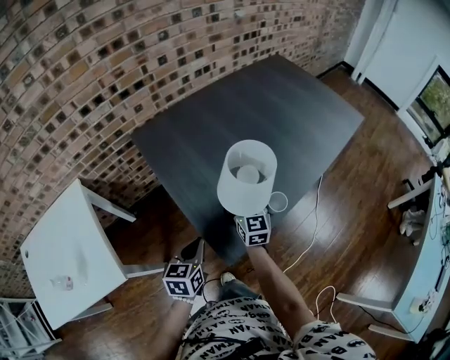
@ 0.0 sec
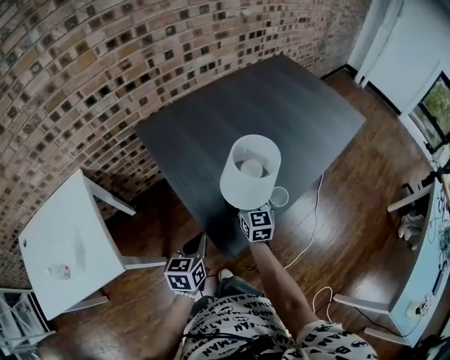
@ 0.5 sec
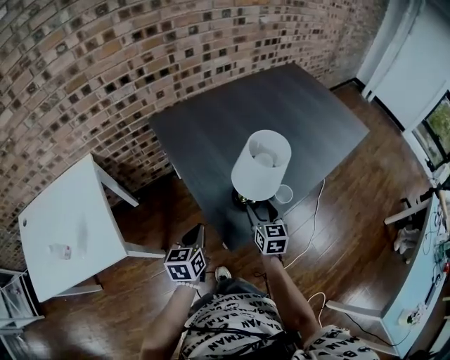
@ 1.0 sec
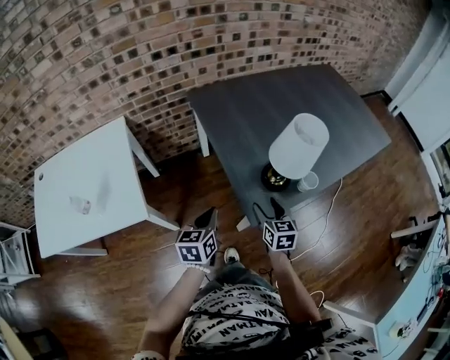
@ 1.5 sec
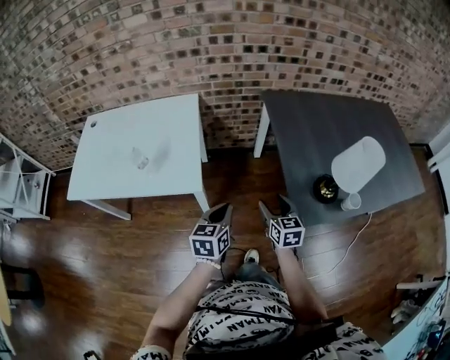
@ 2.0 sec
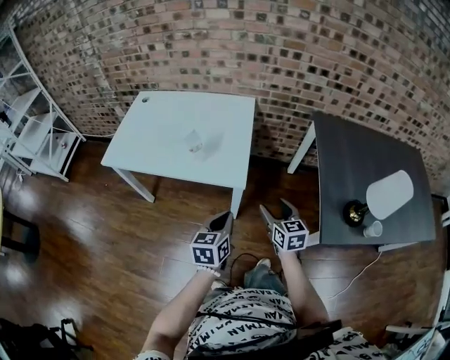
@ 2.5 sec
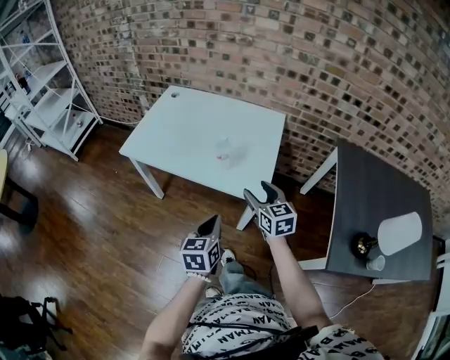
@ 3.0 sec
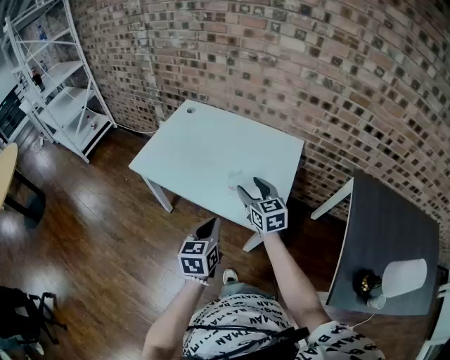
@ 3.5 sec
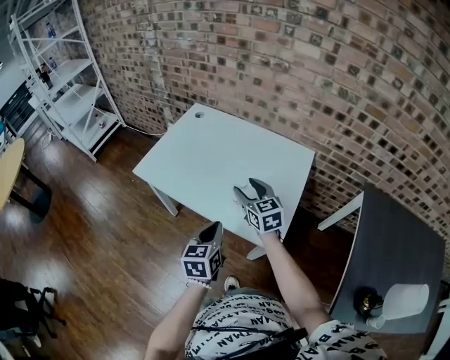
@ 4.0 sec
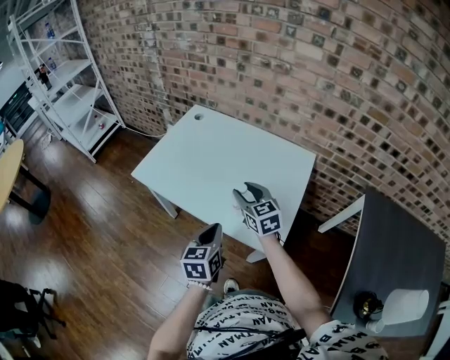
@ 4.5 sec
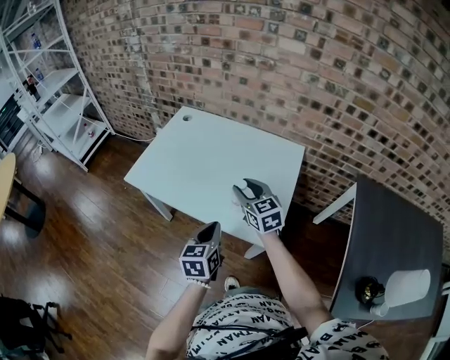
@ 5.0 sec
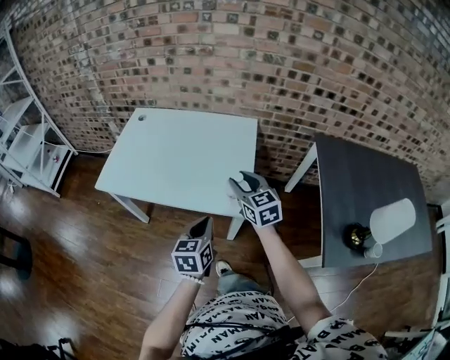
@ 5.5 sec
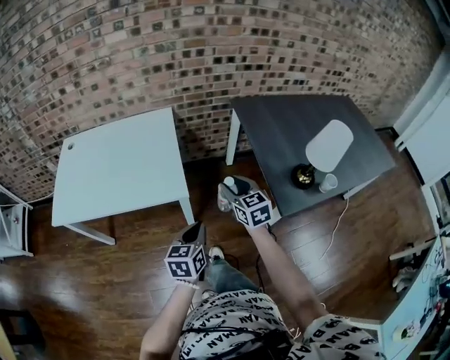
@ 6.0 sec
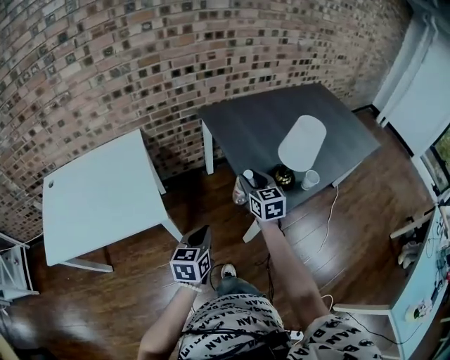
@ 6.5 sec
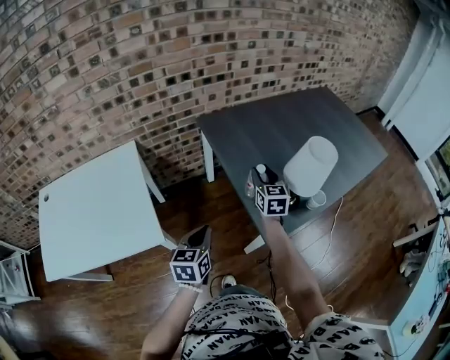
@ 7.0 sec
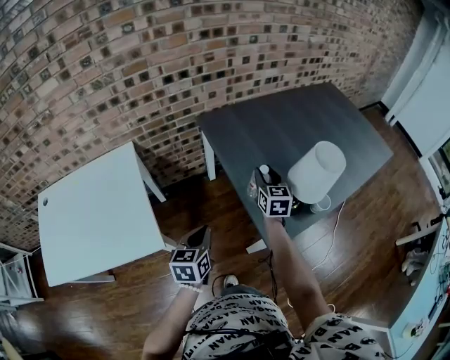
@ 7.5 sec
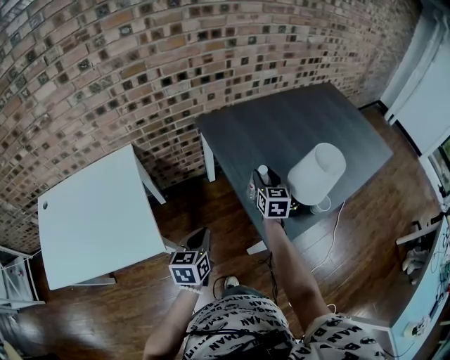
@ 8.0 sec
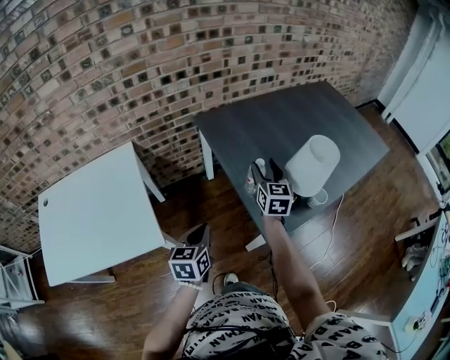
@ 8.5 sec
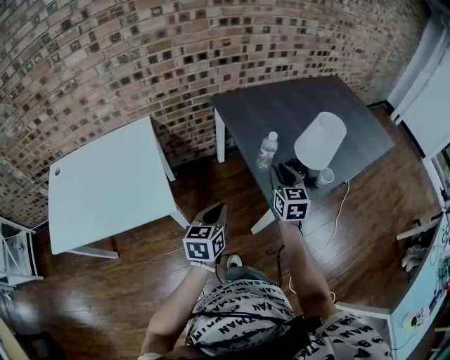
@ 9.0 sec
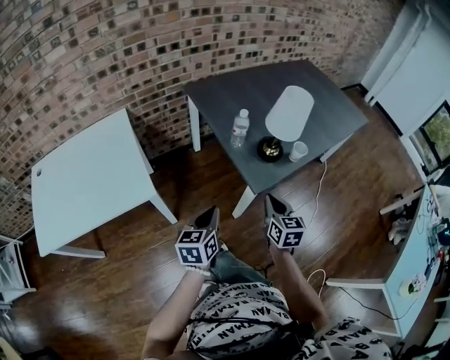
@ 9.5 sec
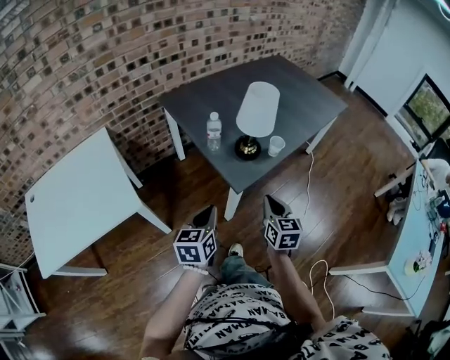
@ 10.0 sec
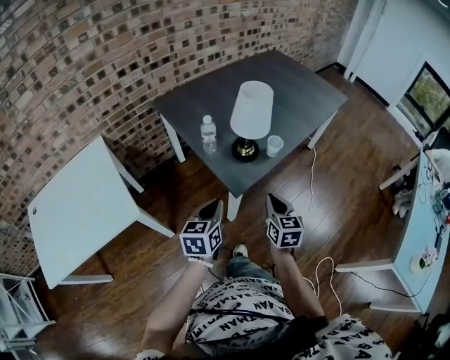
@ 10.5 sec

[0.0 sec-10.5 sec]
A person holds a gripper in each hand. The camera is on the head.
0.0 sec to 2.0 sec: The left gripper shifts by some 25 cm, and changes its angle by some 30 degrees, while the right gripper shifts by approximately 30 cm, turns by about 40 degrees, and opens.
2.0 sec to 4.0 sec: The right gripper moves some 50 cm, and changes its angle by some 50 degrees. The left gripper ends up approximately 35 cm from where it was, and changes its angle by roughly 40 degrees.
4.0 sec to 6.5 sec: The left gripper changes place by some 40 cm, and rotates roughly 50 degrees. The right gripper changes place by some 60 cm, and rotates approximately 60 degrees.
6.5 sec to 8.5 sec: The right gripper travels forward and to the right by some 15 cm. The left gripper is displaced forward by roughly 10 cm.
8.5 sec to 10.5 sec: The right gripper moves backward and to the right, roughly 35 cm, and closes up. The left gripper moves to the right and backward, about 20 cm.

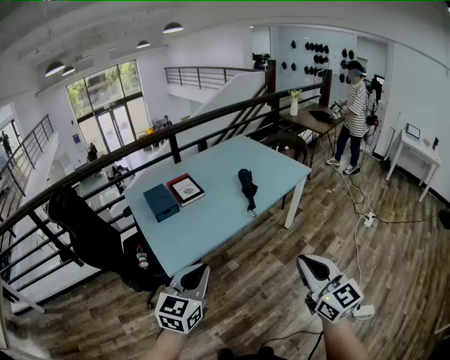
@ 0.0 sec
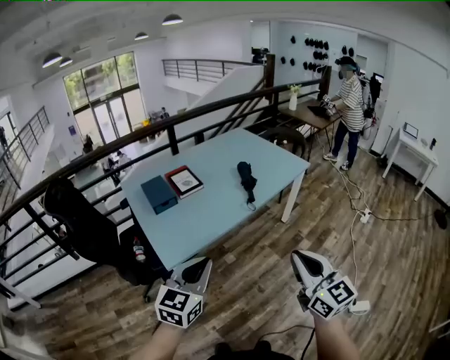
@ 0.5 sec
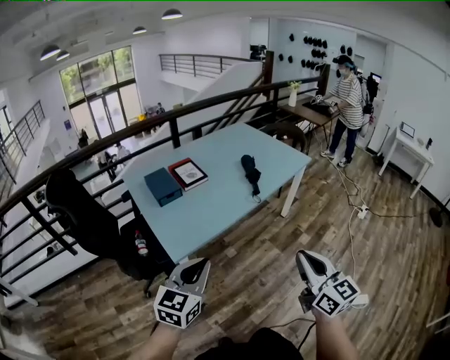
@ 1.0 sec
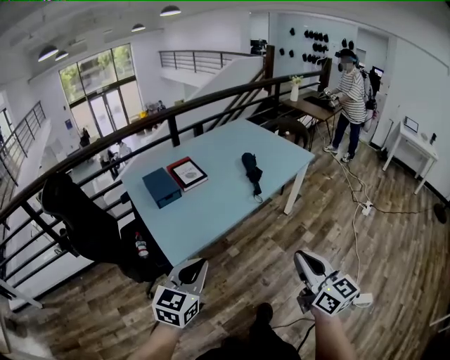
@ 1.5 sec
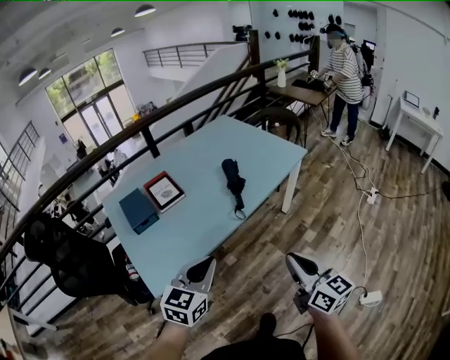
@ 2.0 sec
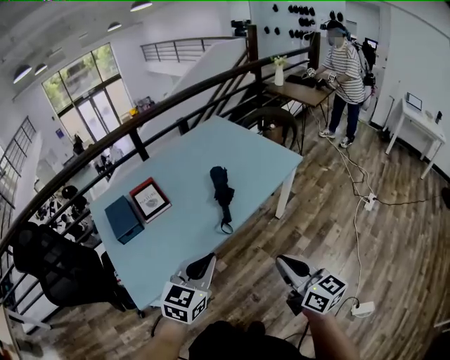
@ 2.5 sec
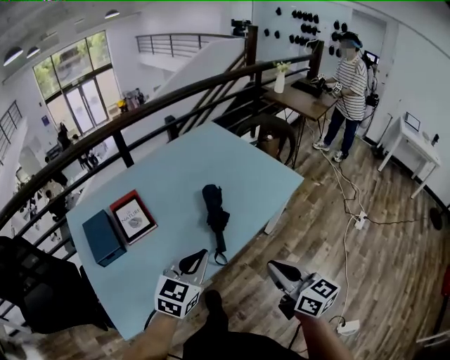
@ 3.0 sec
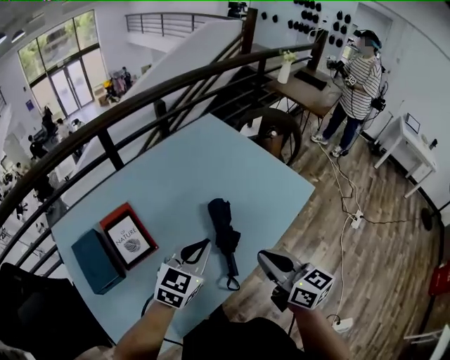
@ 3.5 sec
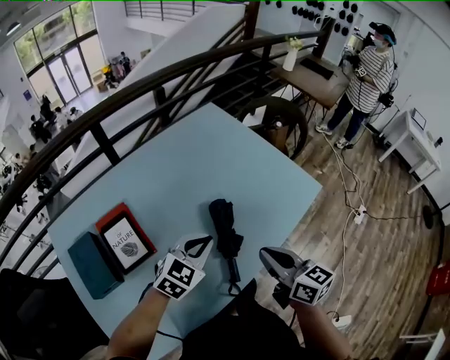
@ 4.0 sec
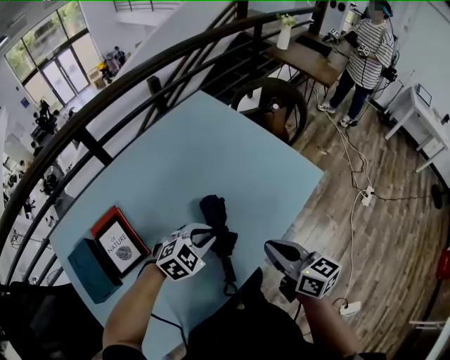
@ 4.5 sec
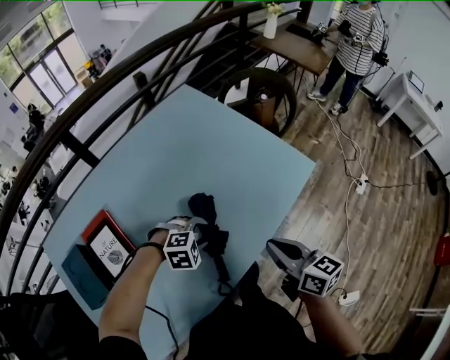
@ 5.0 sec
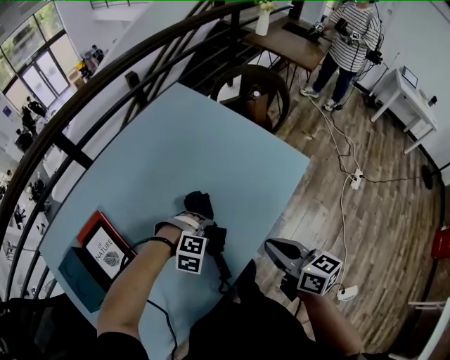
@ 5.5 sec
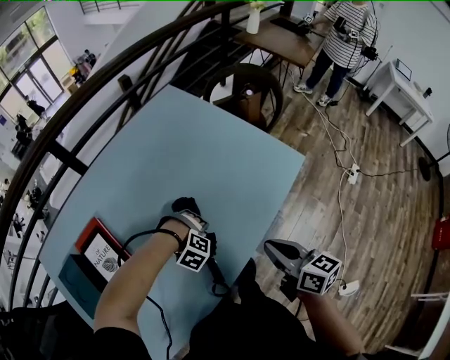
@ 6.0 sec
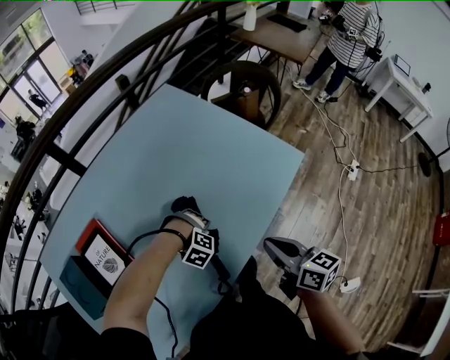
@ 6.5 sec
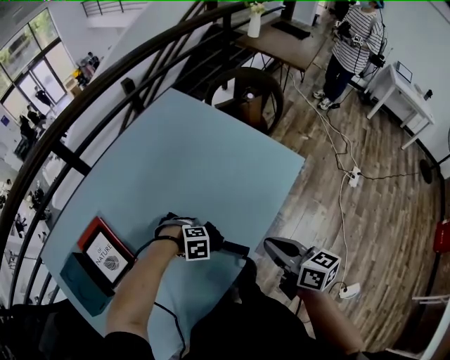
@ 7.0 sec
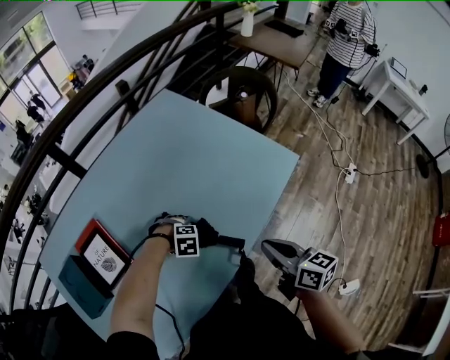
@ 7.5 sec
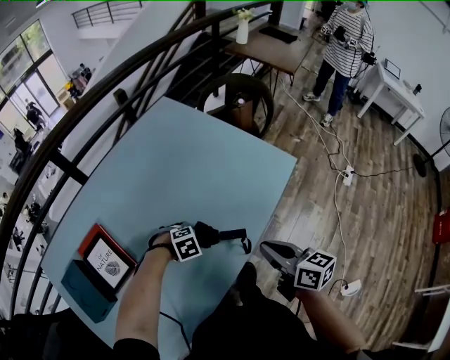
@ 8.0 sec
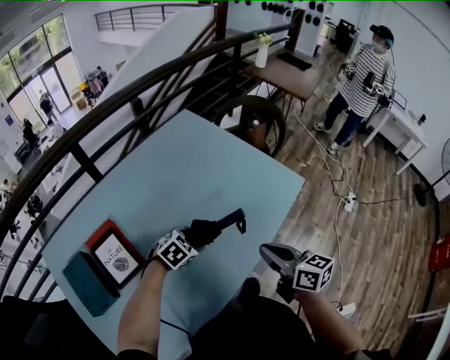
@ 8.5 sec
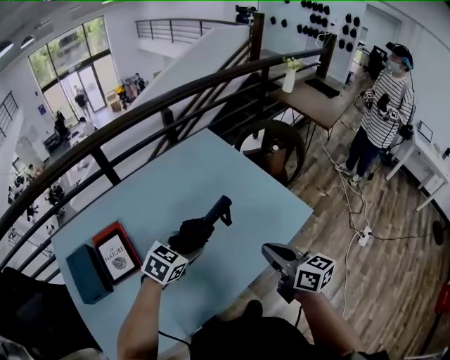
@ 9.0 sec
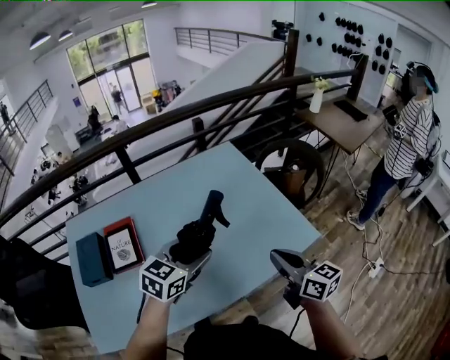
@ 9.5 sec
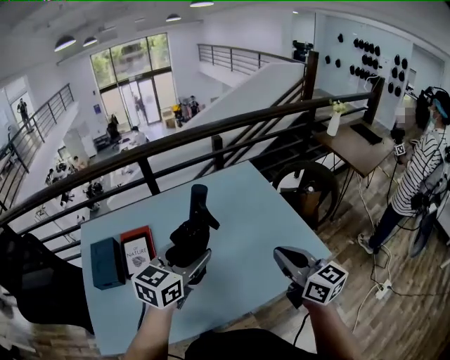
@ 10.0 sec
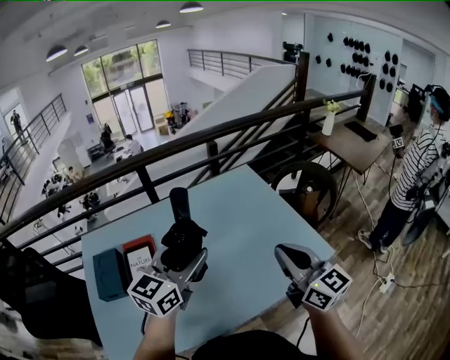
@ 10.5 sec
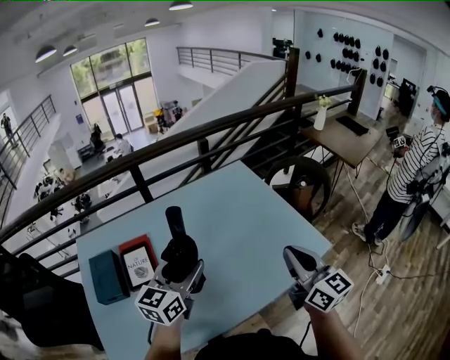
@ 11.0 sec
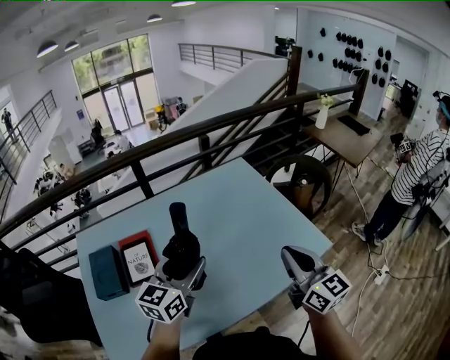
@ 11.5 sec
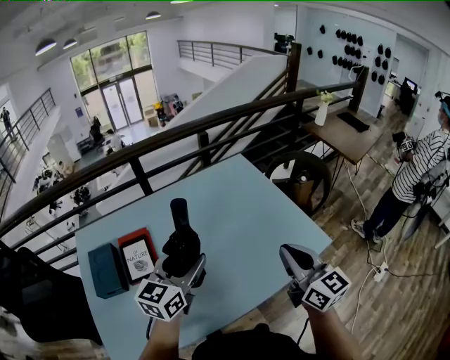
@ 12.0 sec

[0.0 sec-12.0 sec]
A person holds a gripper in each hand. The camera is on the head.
0.0 sec to 2.0 sec: The left gripper is displaced forward and to the right by about 20 cm. Meanwhile the right gripper travels forward and downward by some 20 cm, and changes its angle by some 20 degrees.
2.0 sec to 4.0 sec: The pair of grippers is taken forward, about 50 cm. The left gripper swivels about 20 degrees.
4.0 sec to 6.0 sec: The left gripper moves downward, approximately 20 cm, points its fingers about 60 degrees further downward, and opens. The right gripper shifts by roughly 10 cm.
6.0 sec to 8.0 sec: The left gripper rolls counterclockwise, seen from behind, by about 50 degrees.
8.0 sec to 10.0 sec: The left gripper moves upward, about 40 cm, and angles its fingers upward, by about 60 degrees; the right gripper is displaced upward by some 15 cm, and turns by about 40 degrees.
10.0 sec to 12.0 sec: The left gripper heads to the left, covering roughly 5 cm.

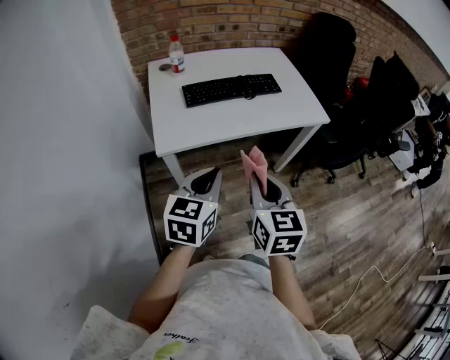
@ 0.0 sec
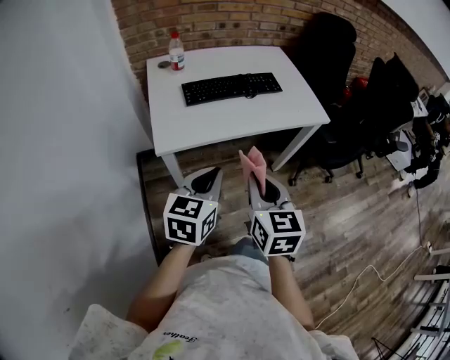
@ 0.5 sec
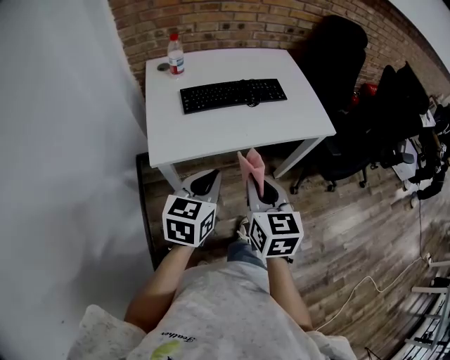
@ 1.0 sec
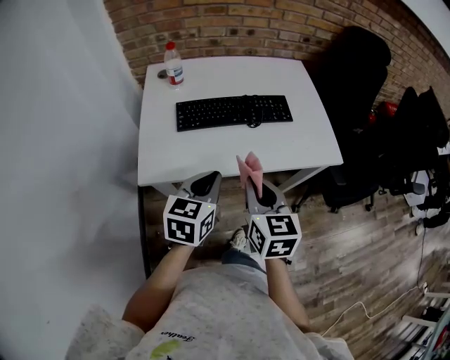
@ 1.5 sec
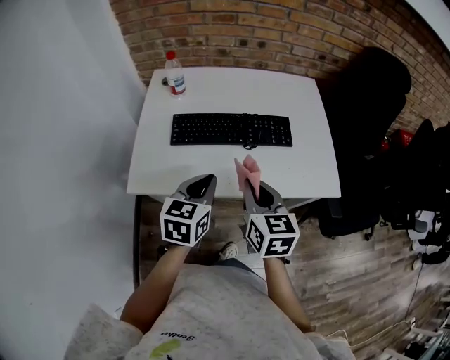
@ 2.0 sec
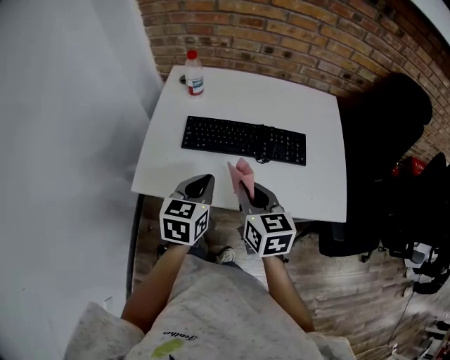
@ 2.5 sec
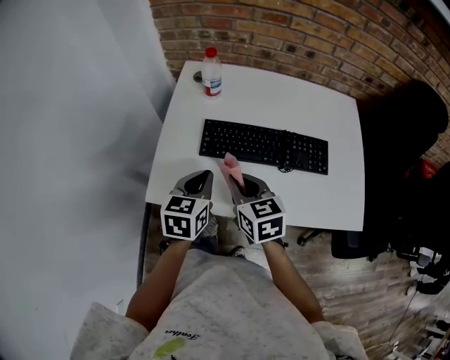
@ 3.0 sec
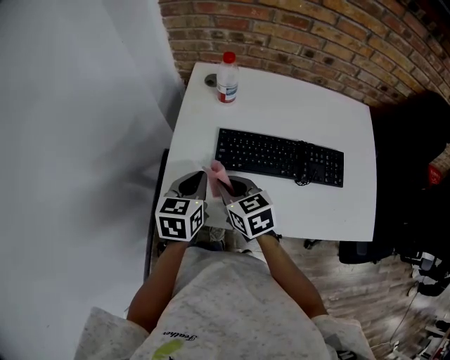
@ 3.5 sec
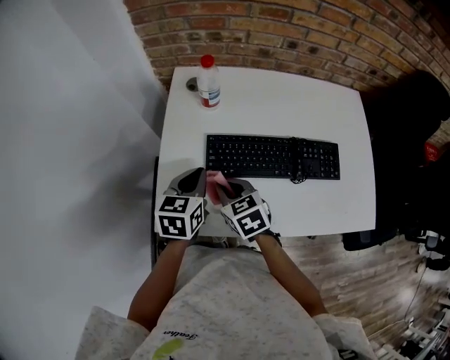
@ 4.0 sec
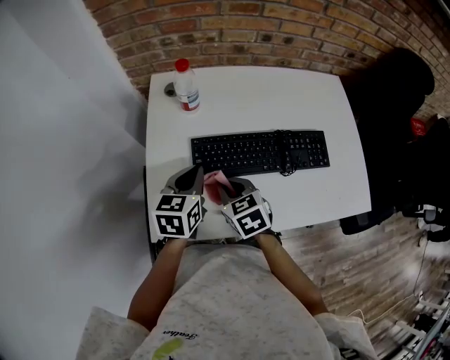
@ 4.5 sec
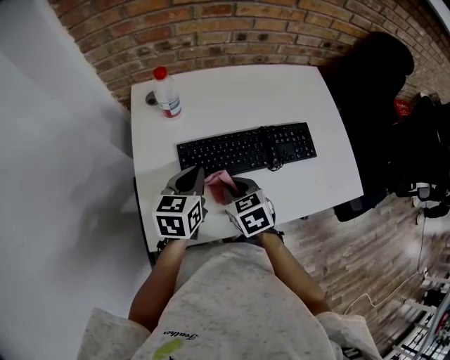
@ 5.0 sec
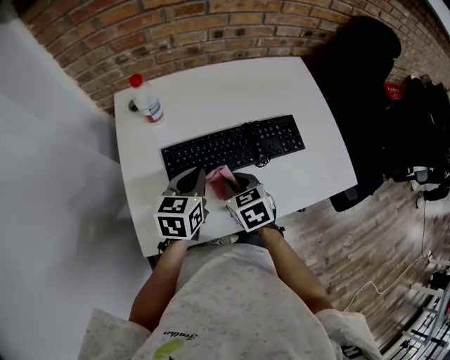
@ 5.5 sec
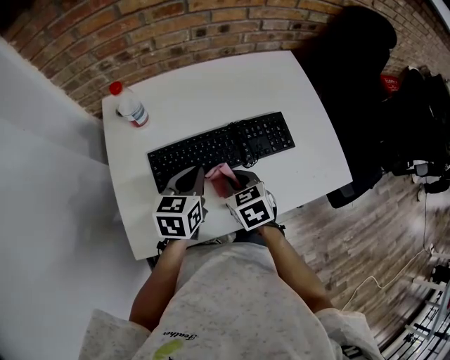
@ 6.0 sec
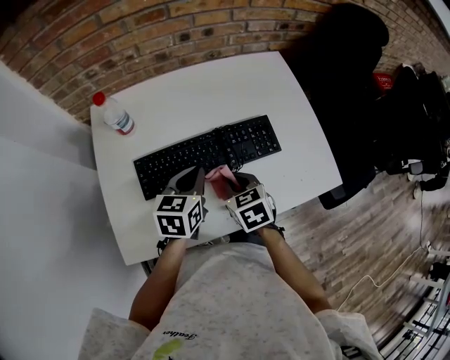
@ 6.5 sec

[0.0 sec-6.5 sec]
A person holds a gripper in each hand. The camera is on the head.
0.0 sec to 2.0 sec: Both grippers travel together forward, approximately 25 cm.
2.0 sec to 4.5 sec: The left gripper moves forward and to the left, some 25 cm; the right gripper is displaced forward, to the left and downward by about 30 cm, and rotates some 30 degrees.
4.5 sec to 6.5 sec: Both grippers travel together to the right, approximately 15 cm.
